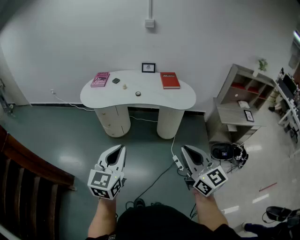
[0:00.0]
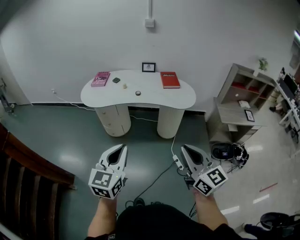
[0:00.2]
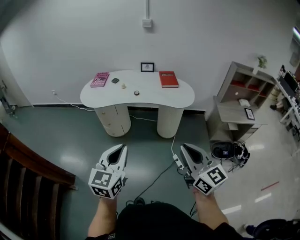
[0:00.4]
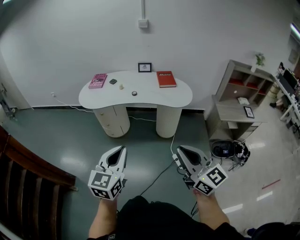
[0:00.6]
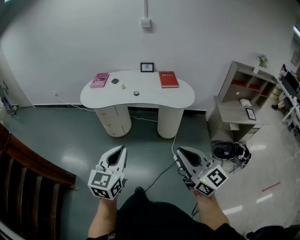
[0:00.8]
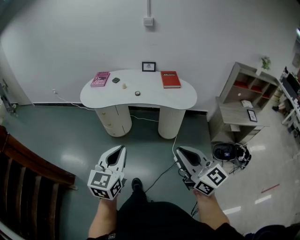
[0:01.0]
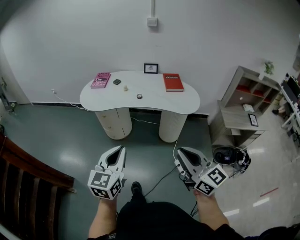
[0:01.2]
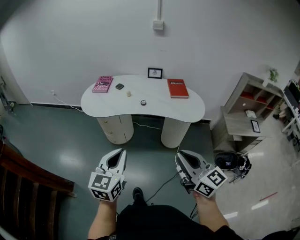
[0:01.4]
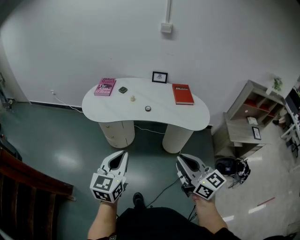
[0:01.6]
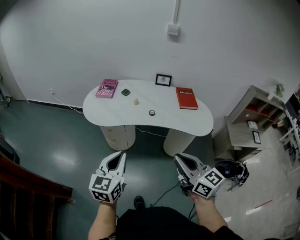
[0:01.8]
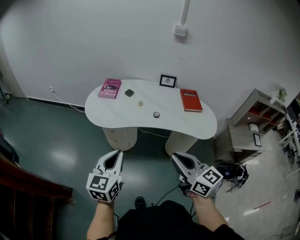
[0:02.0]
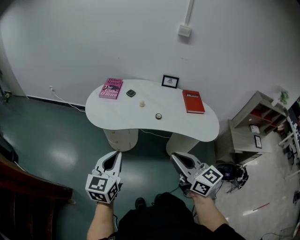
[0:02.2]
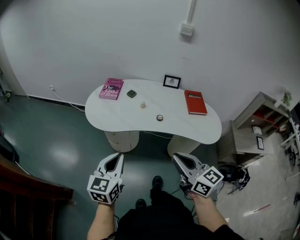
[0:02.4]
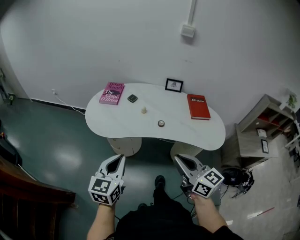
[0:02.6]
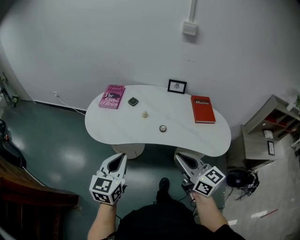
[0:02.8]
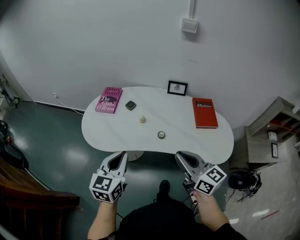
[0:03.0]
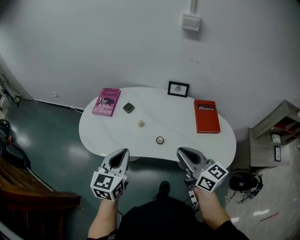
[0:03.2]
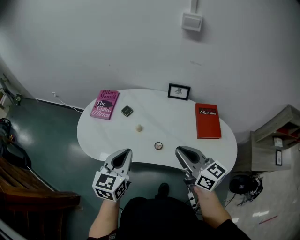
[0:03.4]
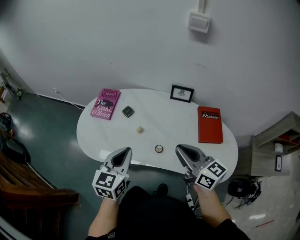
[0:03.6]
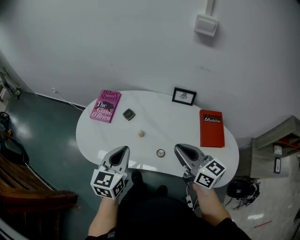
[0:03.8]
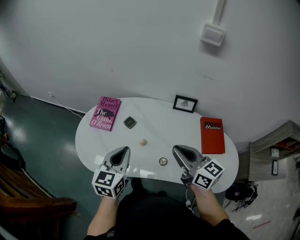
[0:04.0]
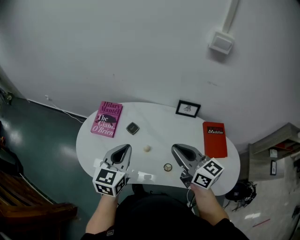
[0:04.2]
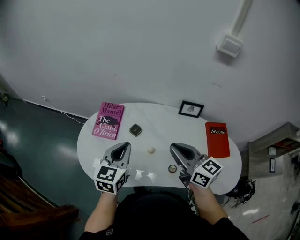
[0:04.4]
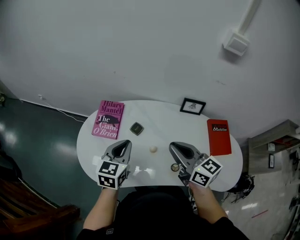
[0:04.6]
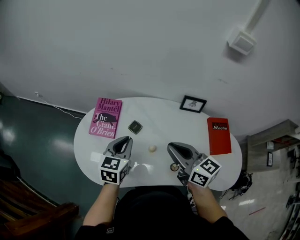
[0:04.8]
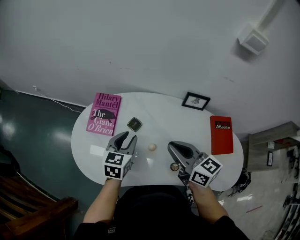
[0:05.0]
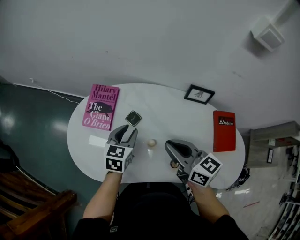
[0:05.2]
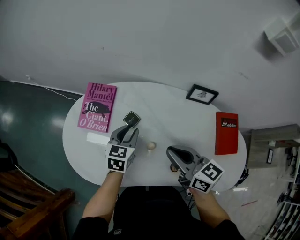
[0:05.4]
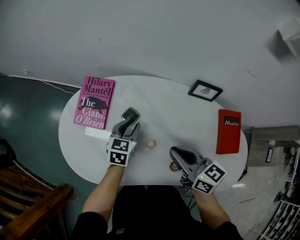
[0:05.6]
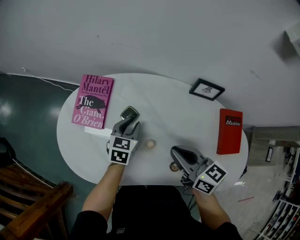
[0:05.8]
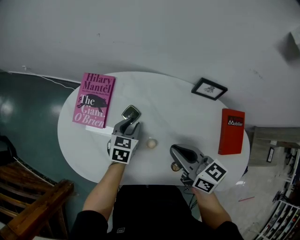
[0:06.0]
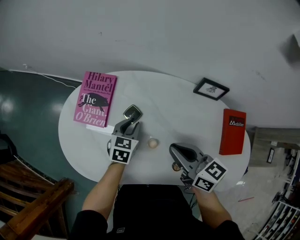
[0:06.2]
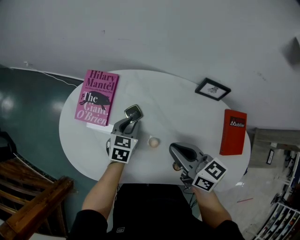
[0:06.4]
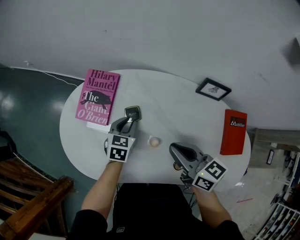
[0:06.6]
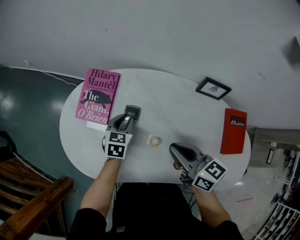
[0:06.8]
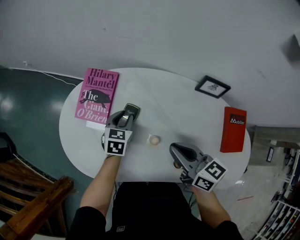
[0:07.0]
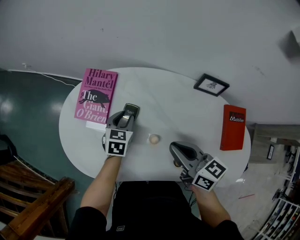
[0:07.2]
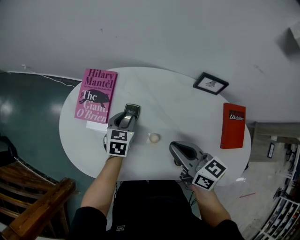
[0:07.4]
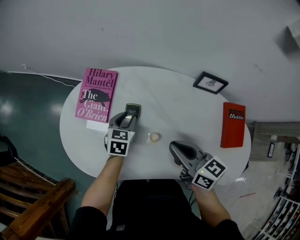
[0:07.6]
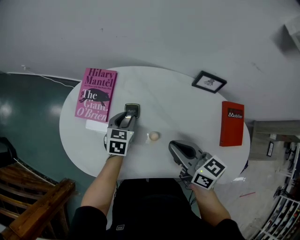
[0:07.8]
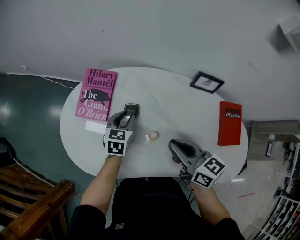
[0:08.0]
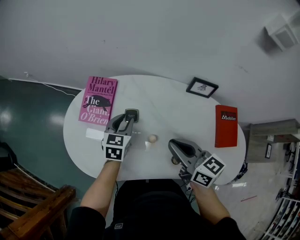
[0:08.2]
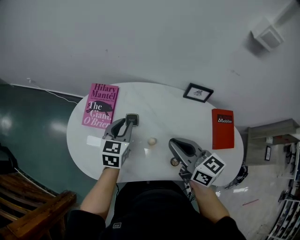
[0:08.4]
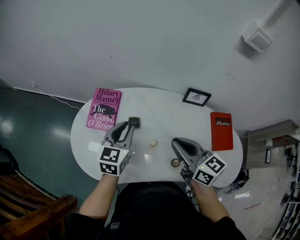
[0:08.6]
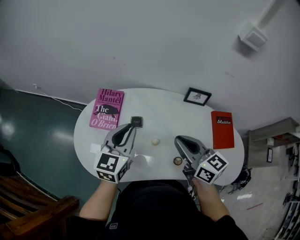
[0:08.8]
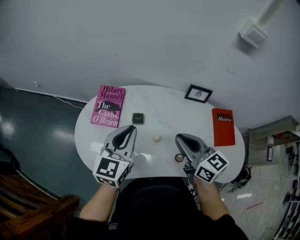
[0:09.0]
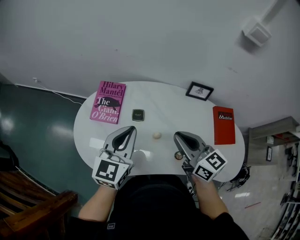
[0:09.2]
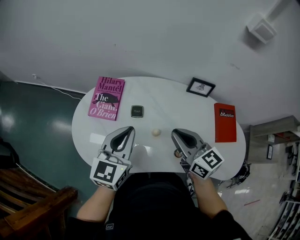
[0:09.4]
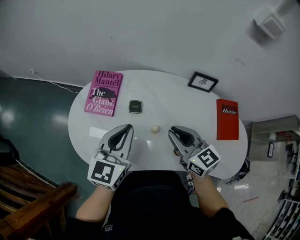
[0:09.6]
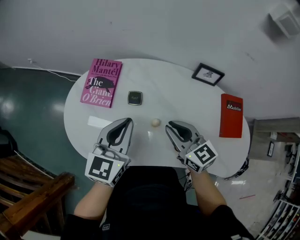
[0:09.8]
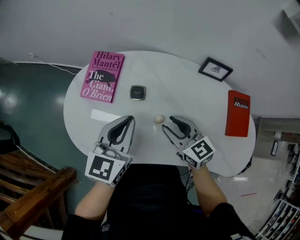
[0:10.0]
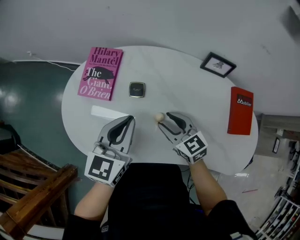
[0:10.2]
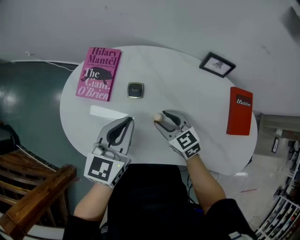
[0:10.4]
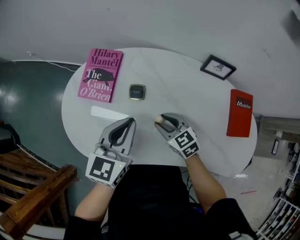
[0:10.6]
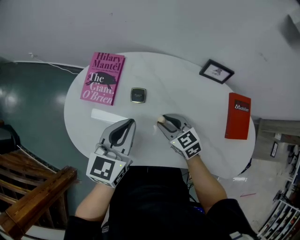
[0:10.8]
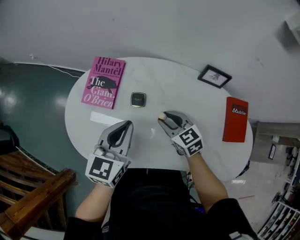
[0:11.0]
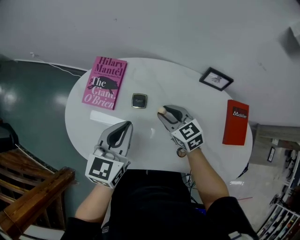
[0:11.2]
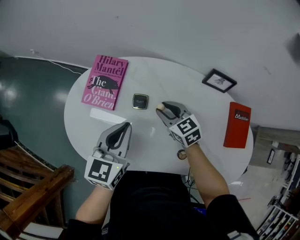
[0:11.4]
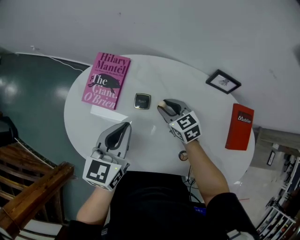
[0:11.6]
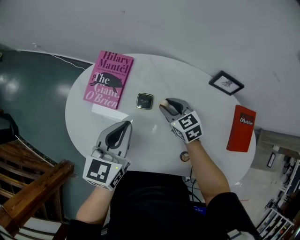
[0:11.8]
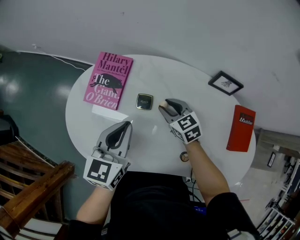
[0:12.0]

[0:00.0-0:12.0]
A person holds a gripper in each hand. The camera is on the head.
0:00.0 to 0:01.6: The grippers both shift forward by some 20 cm.
0:01.6 to 0:03.0: The two grippers go roughly 30 cm forward.
0:03.0 to 0:04.4: The two grippers go roughly 30 cm forward.
0:04.4 to 0:06.0: The left gripper moves downward and forward, about 30 cm, rotates roughly 20 degrees, and opens up. Meanwhile the right gripper goes roughly 15 cm downward and forward.
0:06.0 to 0:07.6: There are only small adjustments of the grippers.
0:07.6 to 0:09.0: The left gripper heads upward, covering about 25 cm, points its fingers approximately 30 degrees further upward, and closes its fingers, while the right gripper moves upward, roughly 10 cm.
0:09.0 to 0:10.4: The left gripper travels downward by approximately 10 cm. The right gripper travels downward by some 25 cm, changes its angle by some 30 degrees, and opens up.
0:10.4 to 0:12.0: The right gripper goes about 10 cm forward. The left gripper changes place by approximately 5 cm.

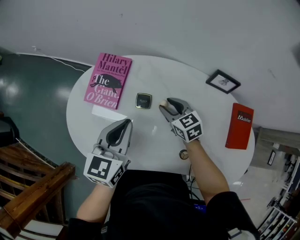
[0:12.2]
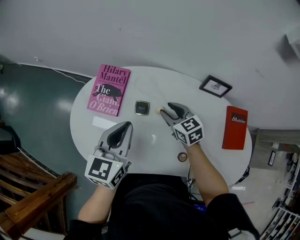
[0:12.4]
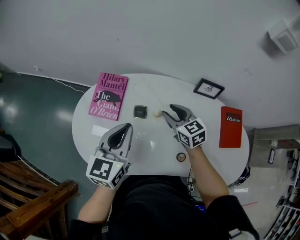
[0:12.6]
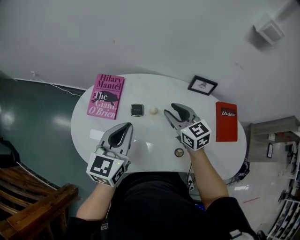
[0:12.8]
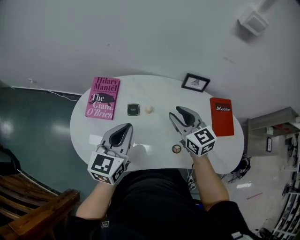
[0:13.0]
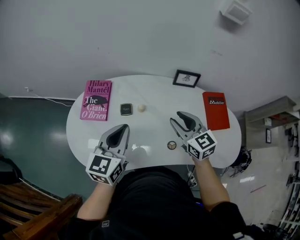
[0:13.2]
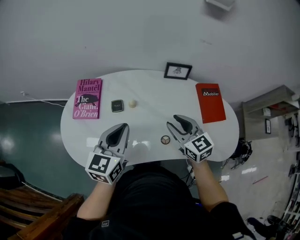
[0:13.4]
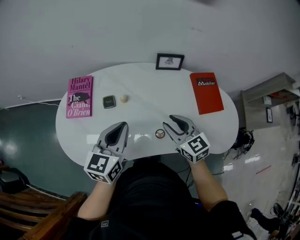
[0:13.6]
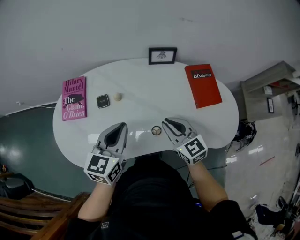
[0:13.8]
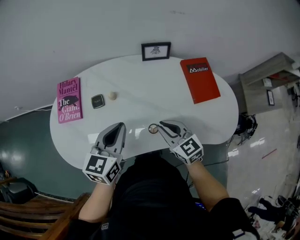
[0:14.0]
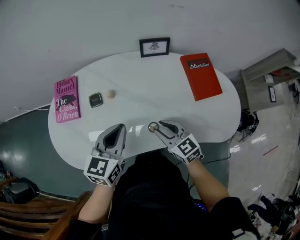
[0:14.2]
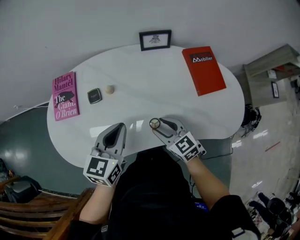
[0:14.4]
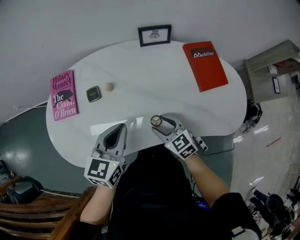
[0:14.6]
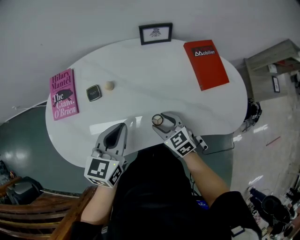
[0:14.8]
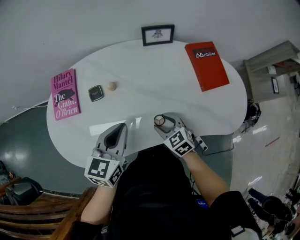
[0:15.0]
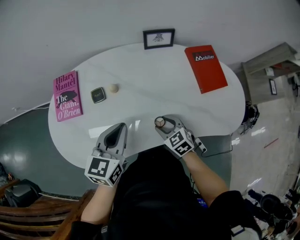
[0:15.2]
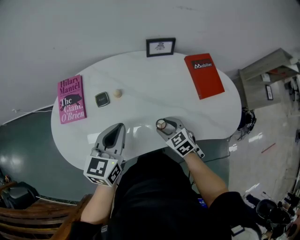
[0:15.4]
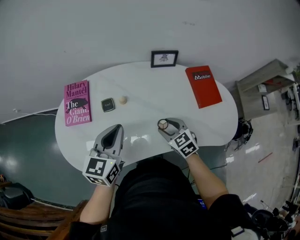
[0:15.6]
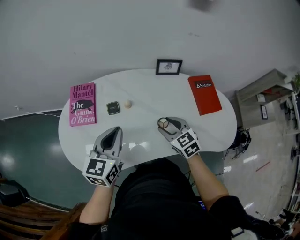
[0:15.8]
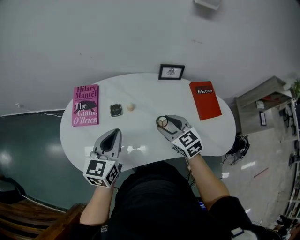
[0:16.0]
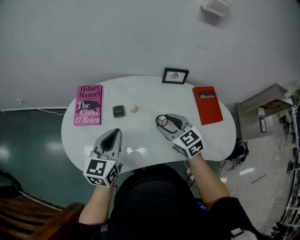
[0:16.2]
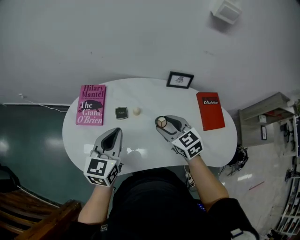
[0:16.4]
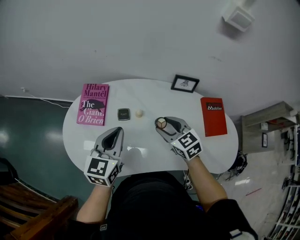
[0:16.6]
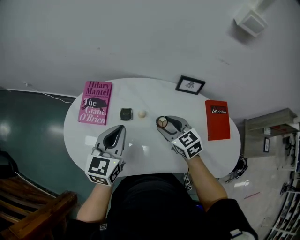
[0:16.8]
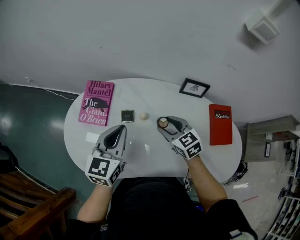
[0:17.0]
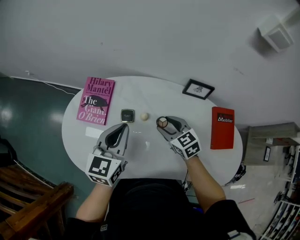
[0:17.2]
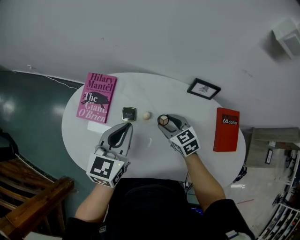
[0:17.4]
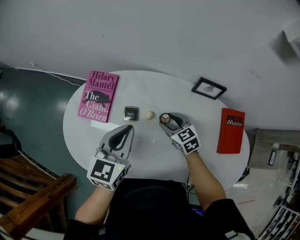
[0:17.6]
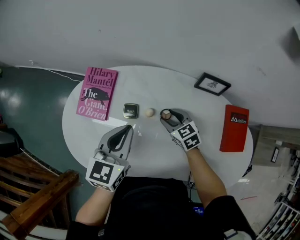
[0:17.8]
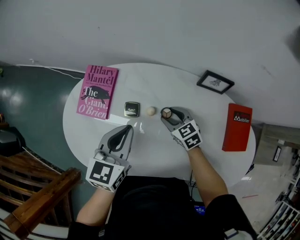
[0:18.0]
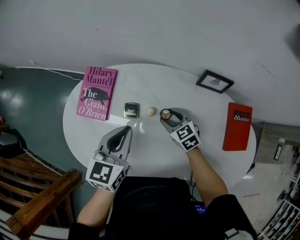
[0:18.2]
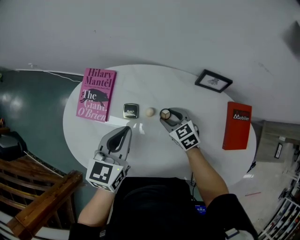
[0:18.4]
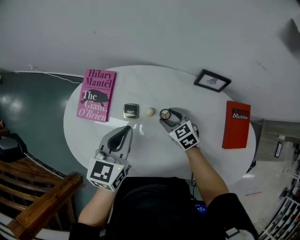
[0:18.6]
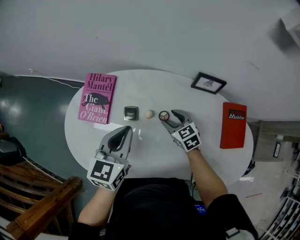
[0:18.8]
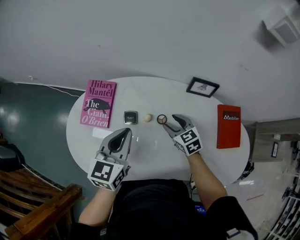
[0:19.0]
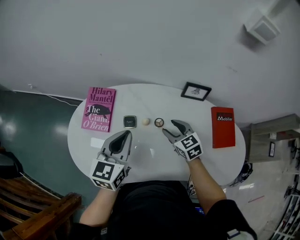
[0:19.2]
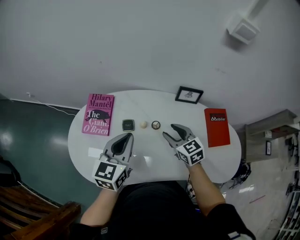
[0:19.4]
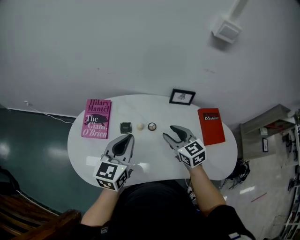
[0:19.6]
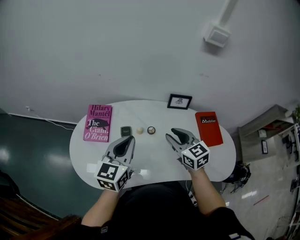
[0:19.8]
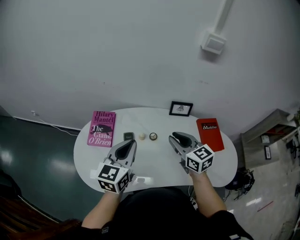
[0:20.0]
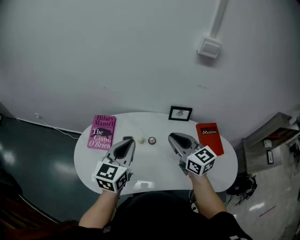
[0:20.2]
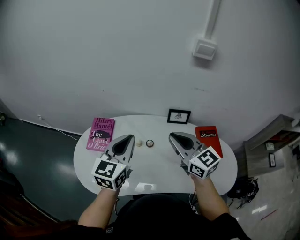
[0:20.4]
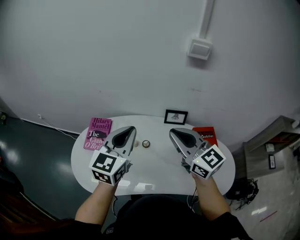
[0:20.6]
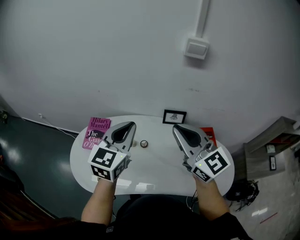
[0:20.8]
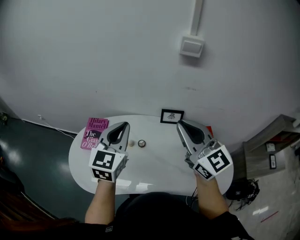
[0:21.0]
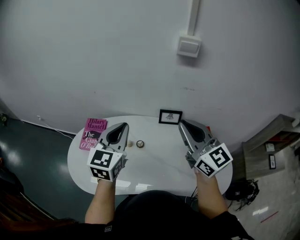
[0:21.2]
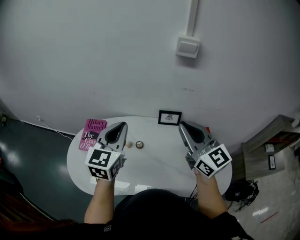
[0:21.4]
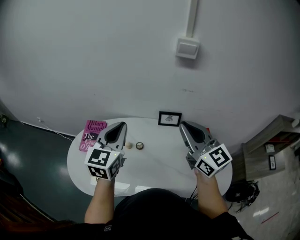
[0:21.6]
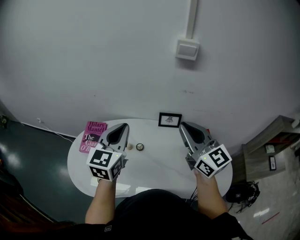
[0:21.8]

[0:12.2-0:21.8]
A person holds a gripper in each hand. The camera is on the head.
0:12.2 to 0:13.8: The left gripper moves to the right and backward, roughly 20 cm, and changes its angle by about 20 degrees. The right gripper shifts roughly 30 cm backward, to the right and upward, swivels approximately 30 degrees, and closes up.
0:13.8 to 0:15.4: The right gripper travels downward by approximately 15 cm, changes its angle by about 30 degrees, and opens.
0:15.4 to 0:17.0: The right gripper shifts about 20 cm forward, upward and to the left; the left gripper moves forward and to the left, approximately 10 cm.
0:17.0 to 0:18.6: The left gripper heads downward, covering approximately 5 cm. The right gripper heads downward, covering about 15 cm.
0:18.6 to 0:20.2: The right gripper goes about 30 cm upward, tips its fingers upward by roughly 40 degrees, and closes; the left gripper shifts about 15 cm upward and backward.
0:20.2 to 0:21.8: The grippers both shift to the right and upward by about 15 cm.

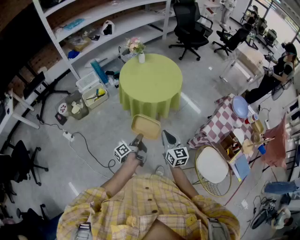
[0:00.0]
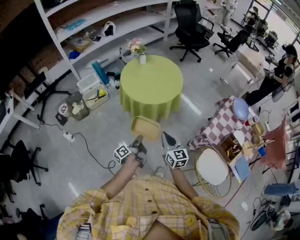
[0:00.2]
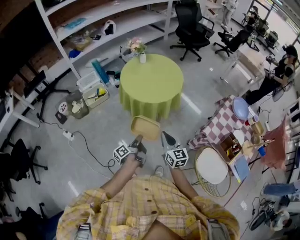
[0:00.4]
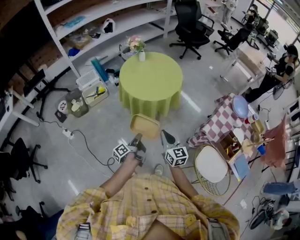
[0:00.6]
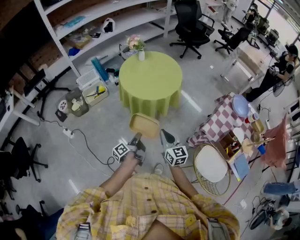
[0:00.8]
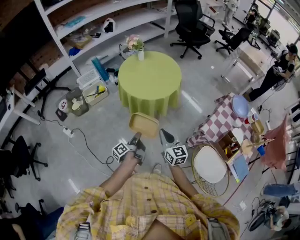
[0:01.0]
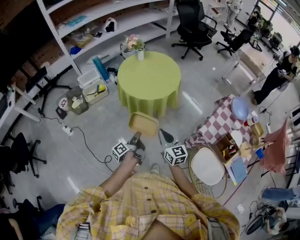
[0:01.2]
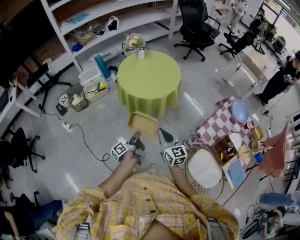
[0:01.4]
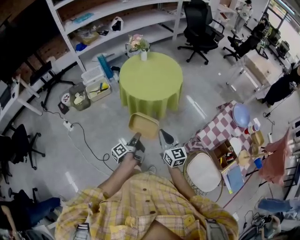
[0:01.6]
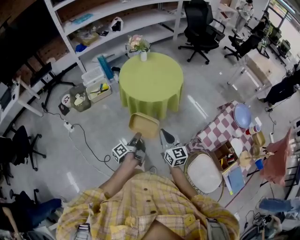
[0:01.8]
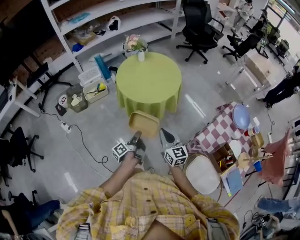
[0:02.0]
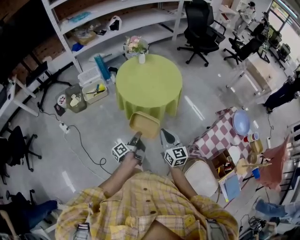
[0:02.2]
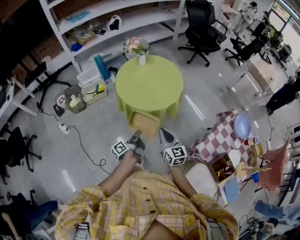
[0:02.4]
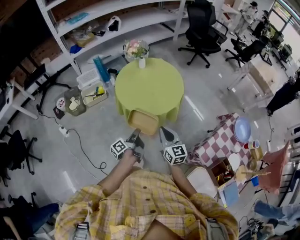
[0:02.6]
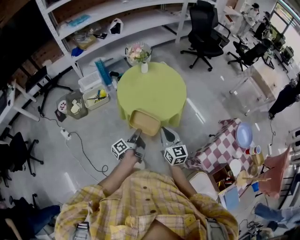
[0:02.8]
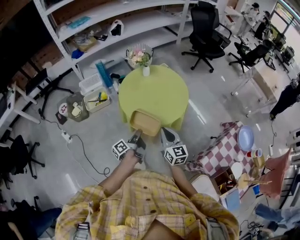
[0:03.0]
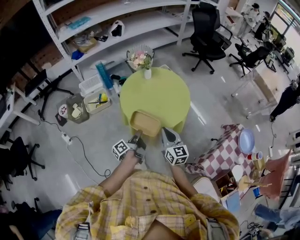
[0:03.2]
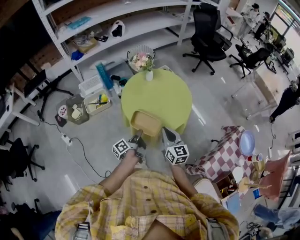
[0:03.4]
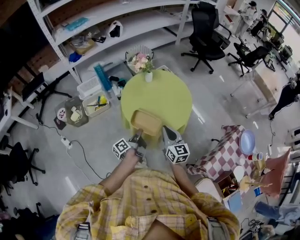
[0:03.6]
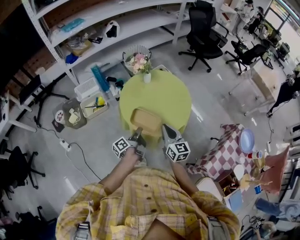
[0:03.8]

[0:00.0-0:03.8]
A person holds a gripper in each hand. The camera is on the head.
0:01.2 to 0:02.6: The right gripper shifts by about 20 cm.
0:02.6 to 0:03.8: The right gripper shifts by some 20 cm.
